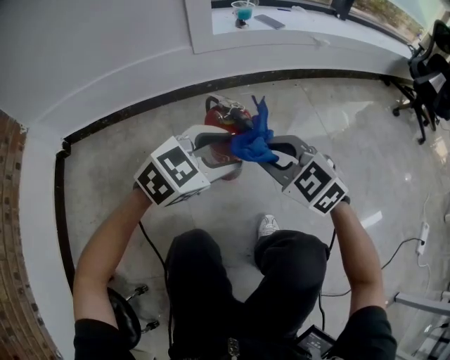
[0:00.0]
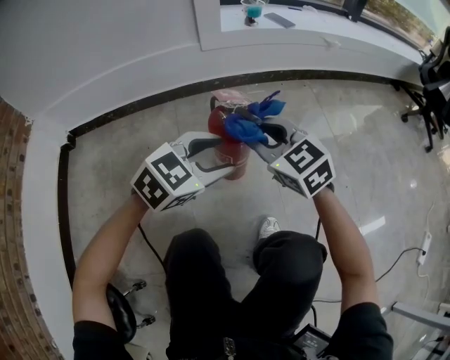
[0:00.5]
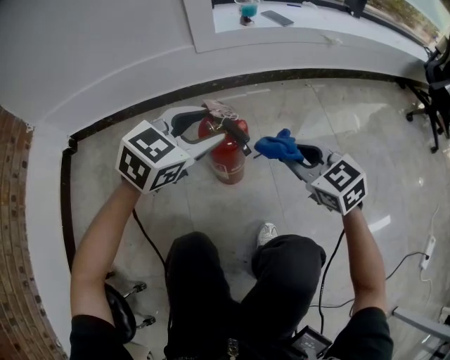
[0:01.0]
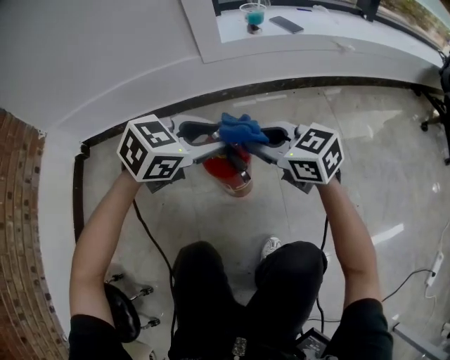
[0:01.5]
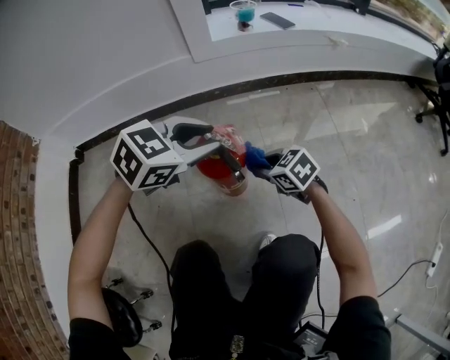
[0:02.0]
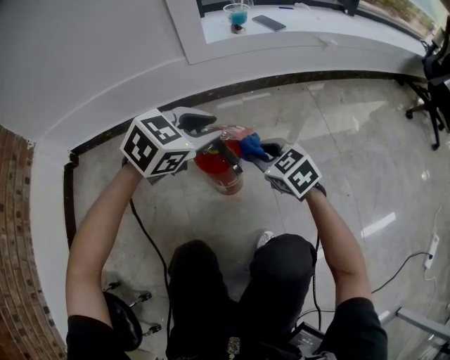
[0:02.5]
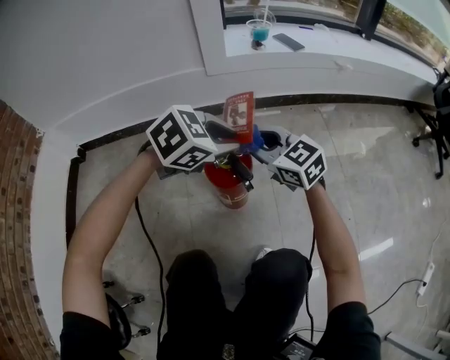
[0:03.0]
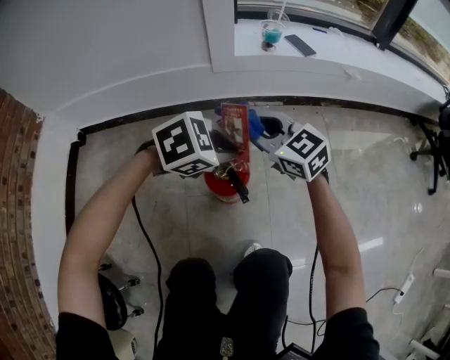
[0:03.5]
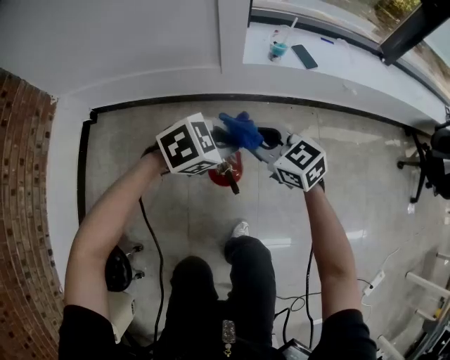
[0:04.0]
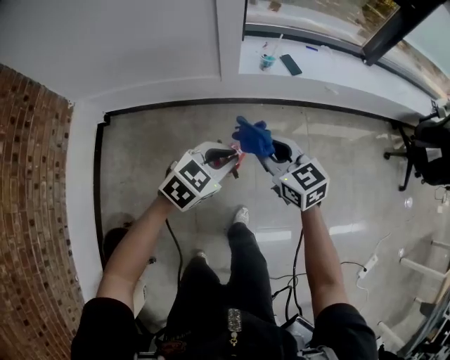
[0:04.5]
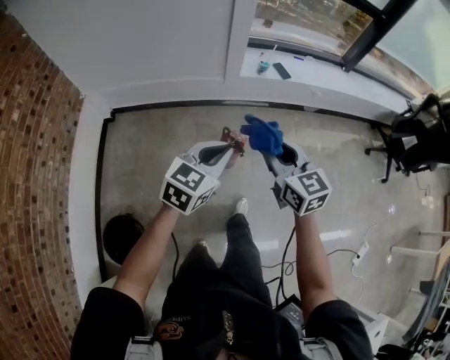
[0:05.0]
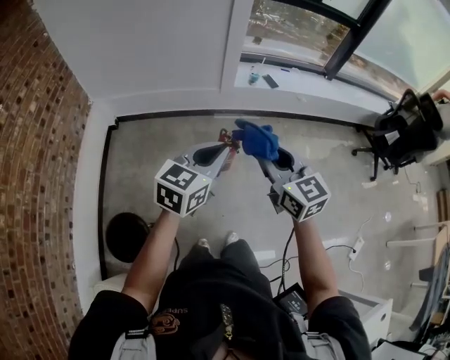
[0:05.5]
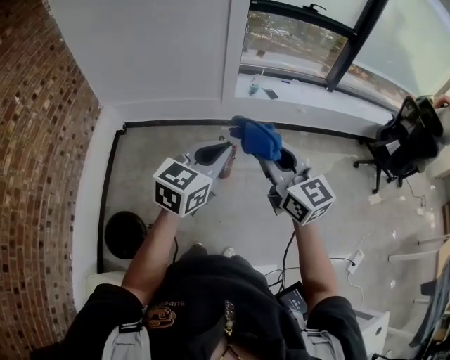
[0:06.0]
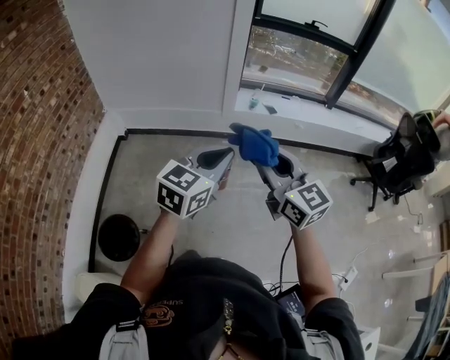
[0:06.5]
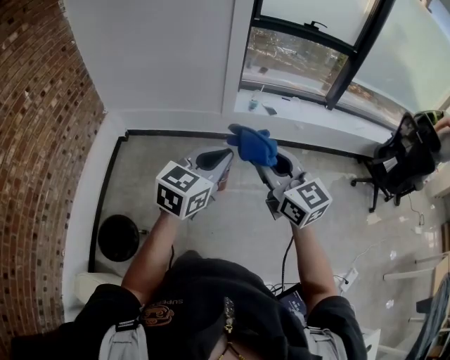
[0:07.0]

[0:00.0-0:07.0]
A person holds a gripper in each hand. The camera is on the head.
0:00.0 to 0:02.0: The left gripper shifts about 10 cm forward, and closes, while the right gripper heads downward and forward, covering some 20 cm, and swivels about 30 degrees.
0:02.0 to 0:03.5: The left gripper closes its fingers. Meanwhile the right gripper travels upward by some 20 cm, and turns by some 30 degrees.
0:03.5 to 0:05.0: The grippers both shift upward by approximately 40 cm. The left gripper angles its fingers upward, by some 30 degrees. The right gripper rotates approximately 20 degrees.
0:05.0 to 0:07.0: The left gripper moves upward and backward, about 25 cm. Meanwhile the right gripper moves backward and upward, about 25 cm.

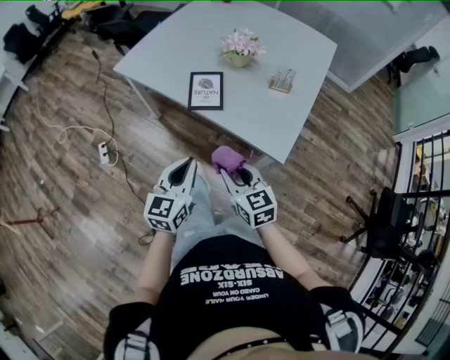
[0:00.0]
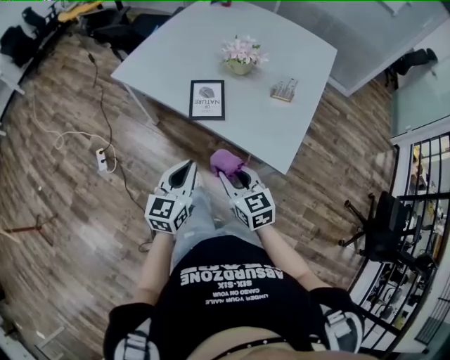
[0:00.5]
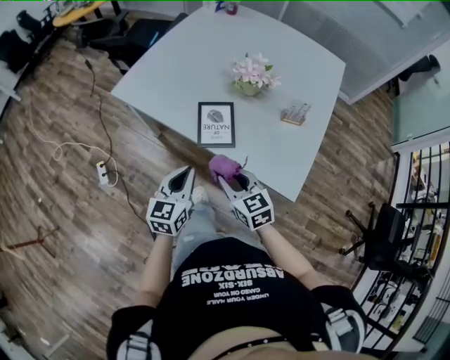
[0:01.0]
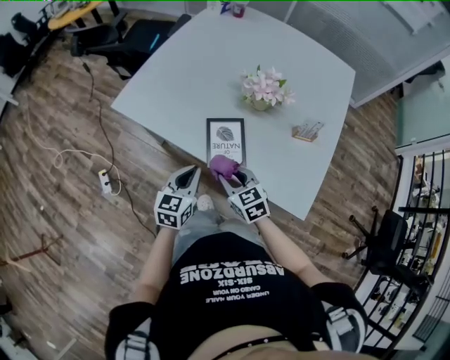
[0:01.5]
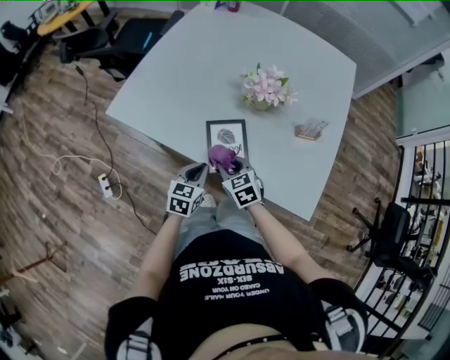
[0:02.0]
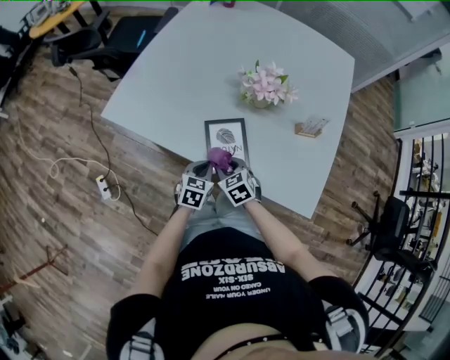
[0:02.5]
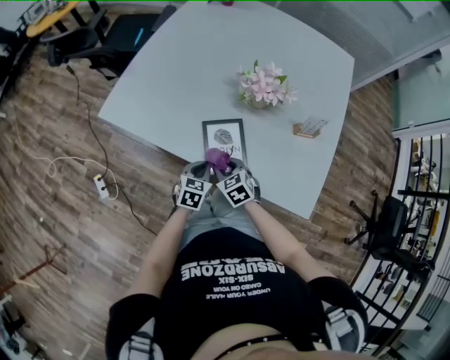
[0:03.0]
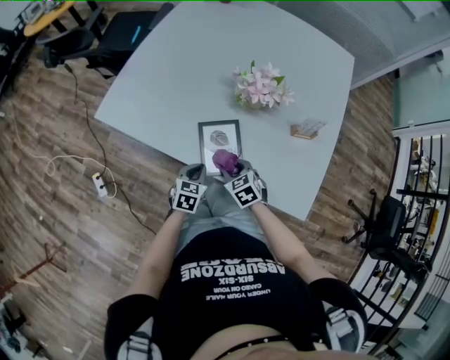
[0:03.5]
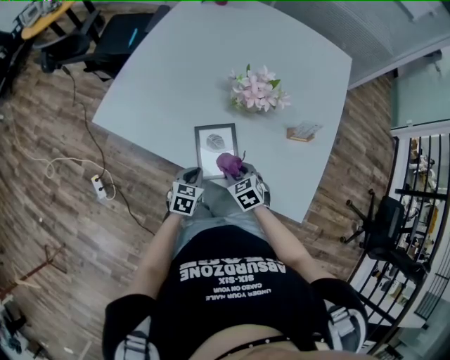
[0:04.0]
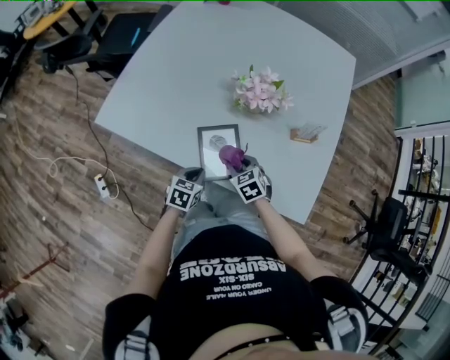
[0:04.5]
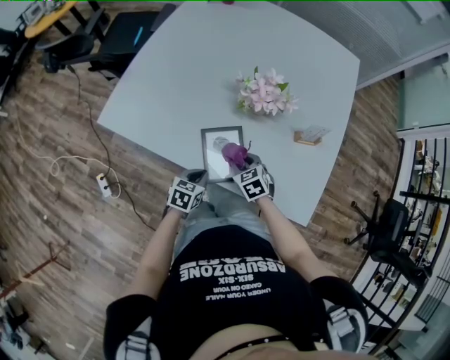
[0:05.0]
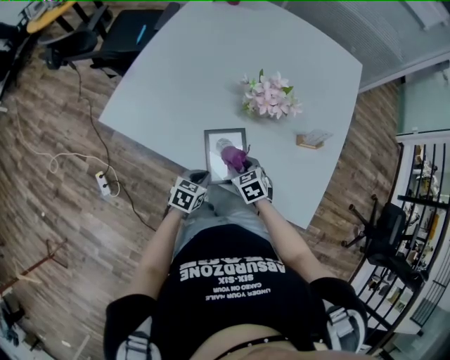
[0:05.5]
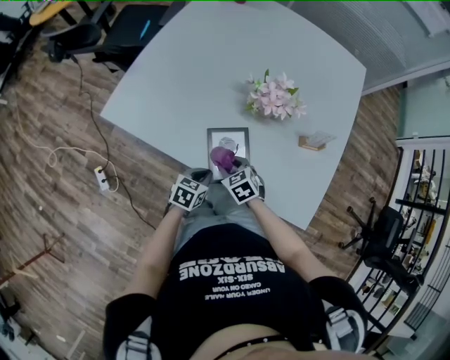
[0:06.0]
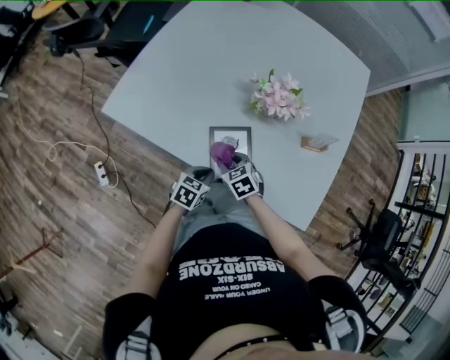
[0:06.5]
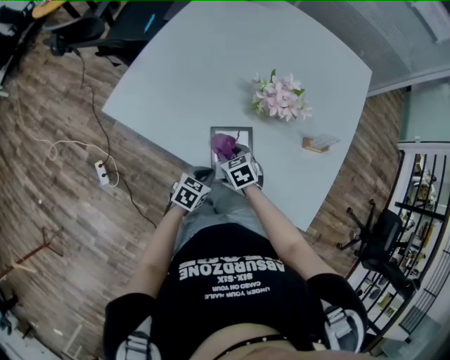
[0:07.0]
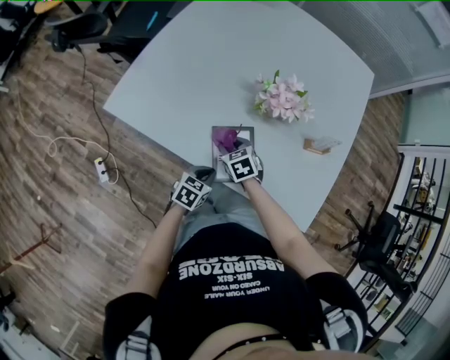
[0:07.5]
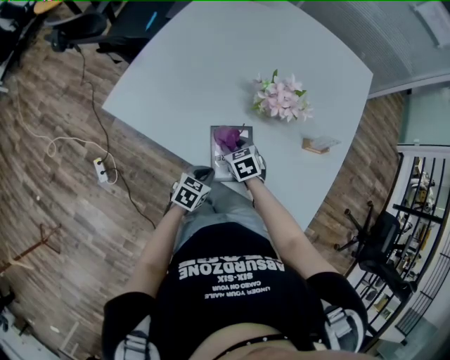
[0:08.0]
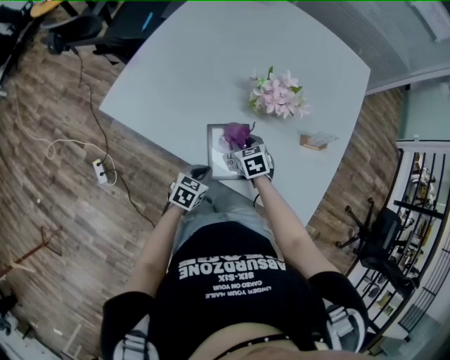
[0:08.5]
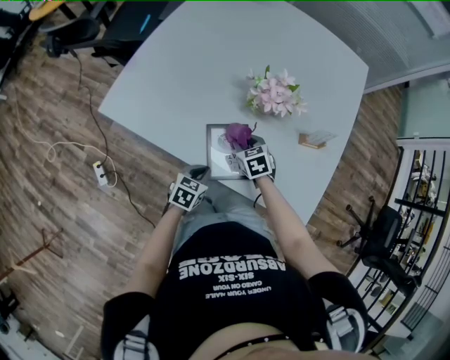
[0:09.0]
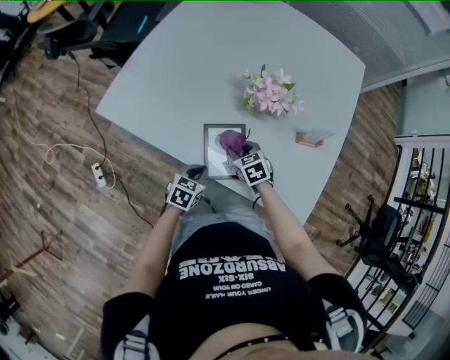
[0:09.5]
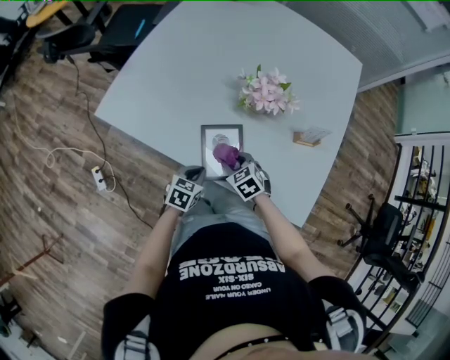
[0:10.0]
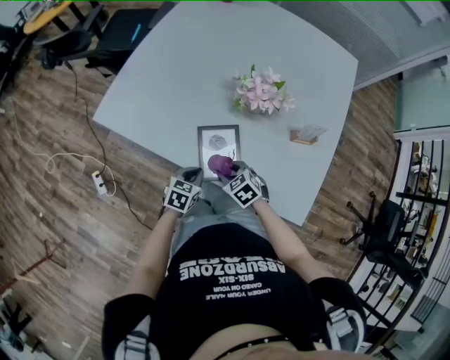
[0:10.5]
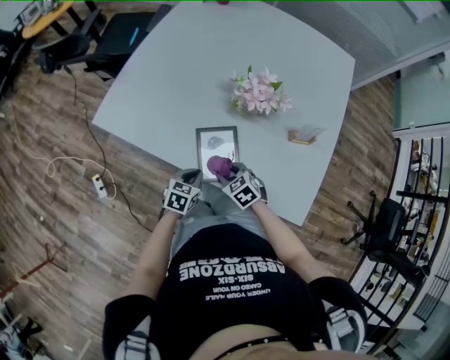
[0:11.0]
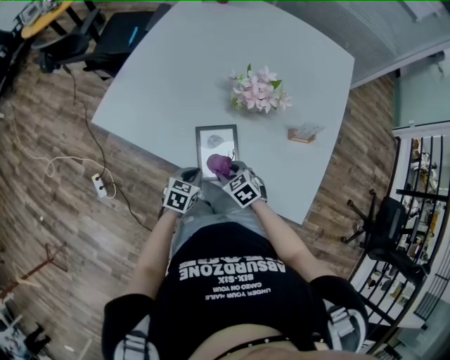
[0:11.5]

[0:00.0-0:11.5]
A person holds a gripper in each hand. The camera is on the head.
0:00.0 to 0:02.0: The grippers both shift forward and downward by about 35 cm. The right gripper turns by roughly 20 degrees; the left gripper swivels about 30 degrees.
0:02.0 to 0:04.0: The right gripper shifts approximately 5 cm to the right. The left gripper heads downward, covering approximately 5 cm.
0:04.0 to 0:06.0: The right gripper shifts some 5 cm to the left.
0:06.0 to 0:07.5: The right gripper goes some 5 cm forward.
0:07.5 to 0:09.5: The right gripper is displaced to the right by roughly 5 cm.
0:09.5 to 0:11.5: The right gripper moves backward, about 10 cm.

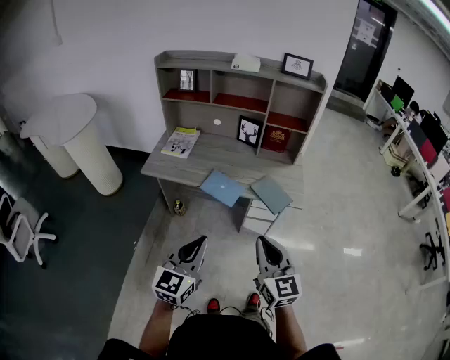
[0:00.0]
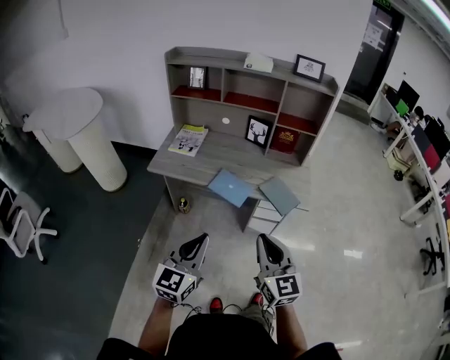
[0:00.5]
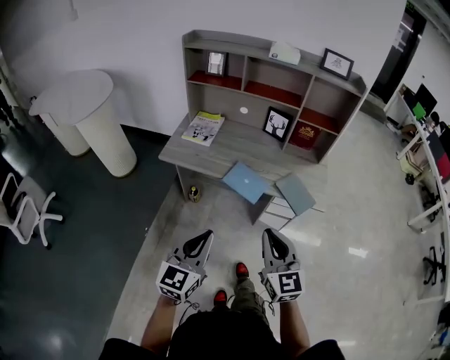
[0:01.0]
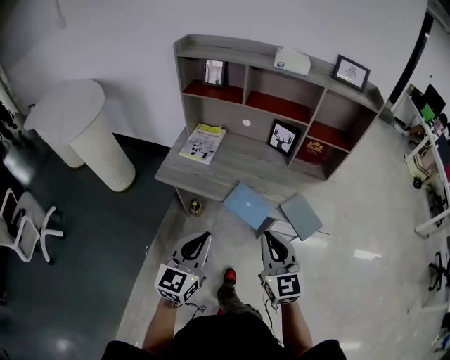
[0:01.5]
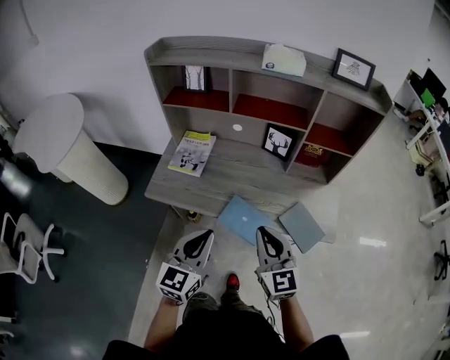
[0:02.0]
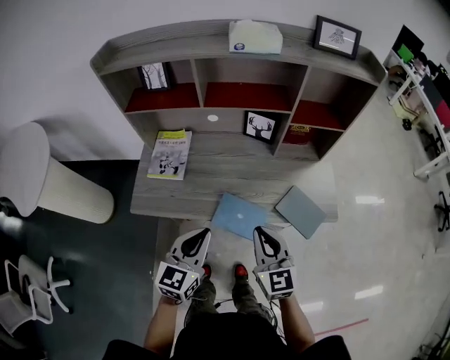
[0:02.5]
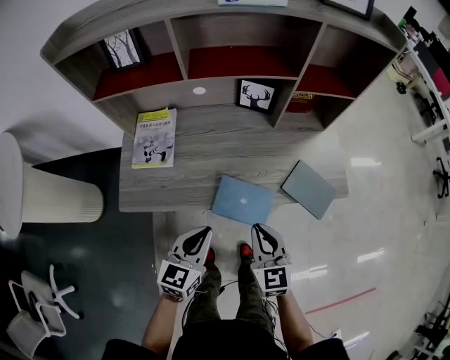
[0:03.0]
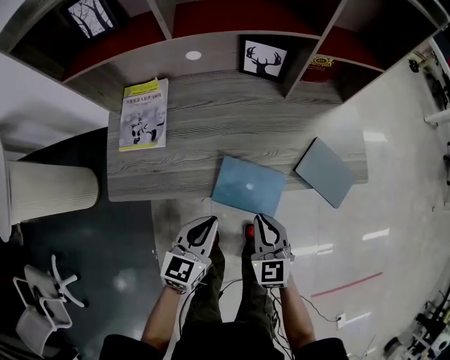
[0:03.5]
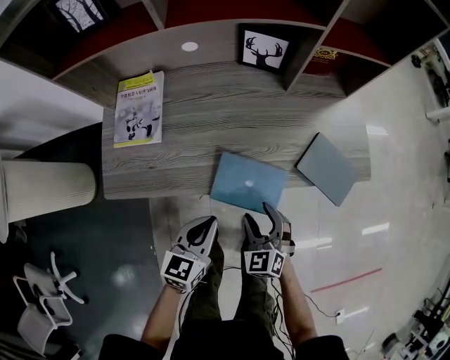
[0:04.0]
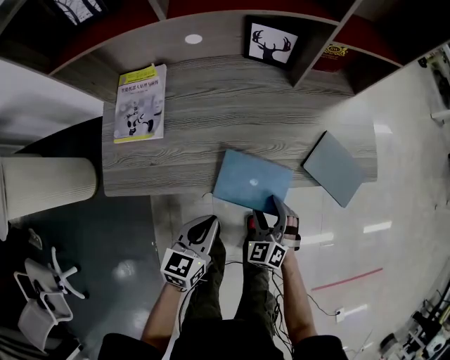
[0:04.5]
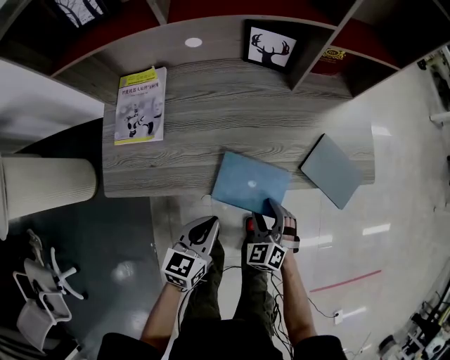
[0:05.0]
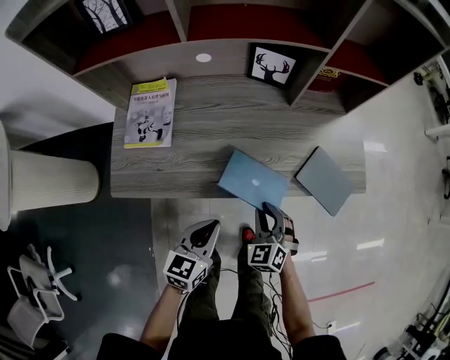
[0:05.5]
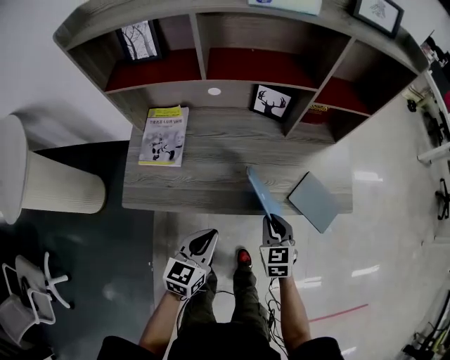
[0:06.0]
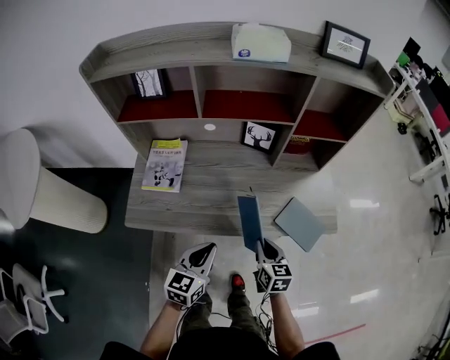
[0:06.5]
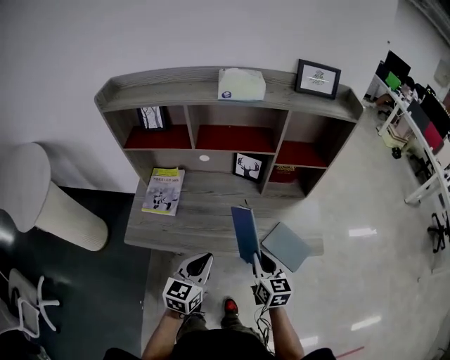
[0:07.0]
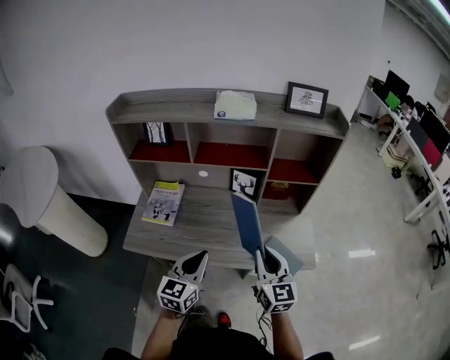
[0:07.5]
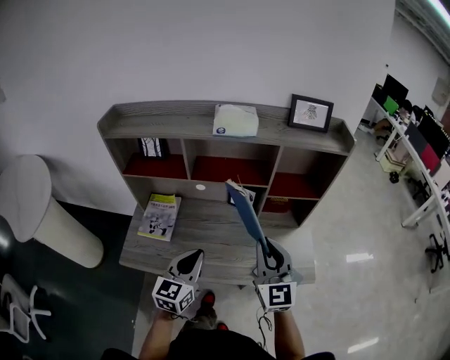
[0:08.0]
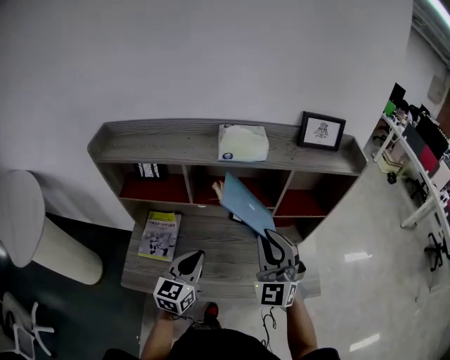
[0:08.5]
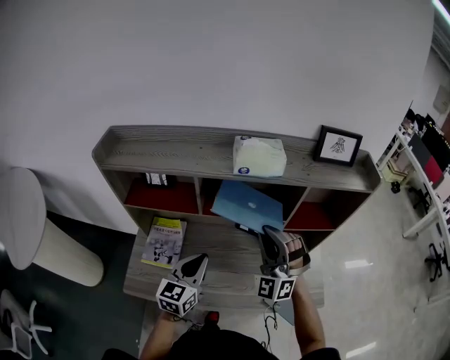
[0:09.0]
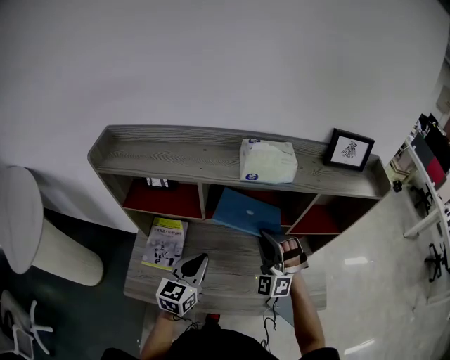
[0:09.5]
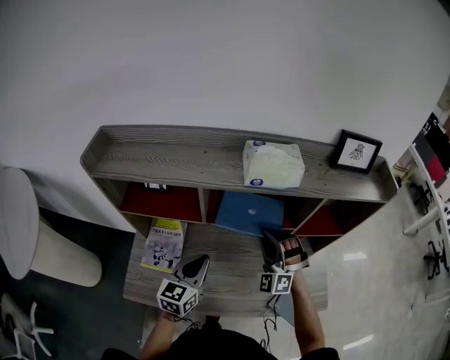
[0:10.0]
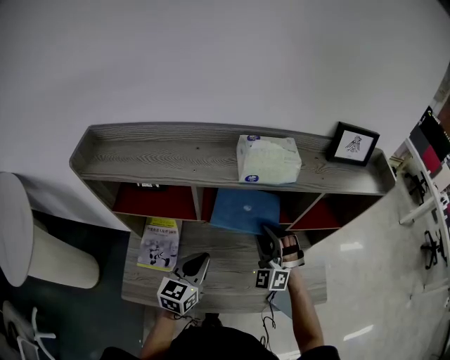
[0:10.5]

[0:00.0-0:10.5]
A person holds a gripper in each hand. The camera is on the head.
0:00.0 to 0:02.0: The grippers both shift forward by roughly 30 cm.
0:02.0 to 0:04.0: Both grippers travel together downward, about 30 cm. The right gripper tilts its fingers roughly 30 degrees downward, and opens up. Meanwhile the left gripper changes its angle by approximately 30 degrees.
0:04.0 to 0:06.5: The right gripper goes roughly 10 cm upward and to the right, rolls clockwise, seen from behind, by some 40 degrees, and closes up; the left gripper heads upward, covering roughly 15 cm.
0:06.5 to 0:08.5: The right gripper moves upward and forward, some 40 cm, and twists approximately 60 degrees counterclockwise, seen from behind, while the left gripper is displaced forward and upward by approximately 25 cm.
0:08.5 to 0:10.5: The left gripper heads forward and downward, covering approximately 10 cm, while the right gripper heads downward and forward, covering approximately 20 cm, and turns by approximately 30 degrees.
